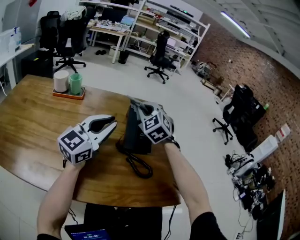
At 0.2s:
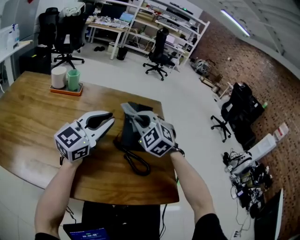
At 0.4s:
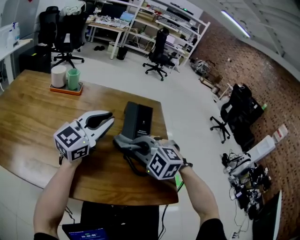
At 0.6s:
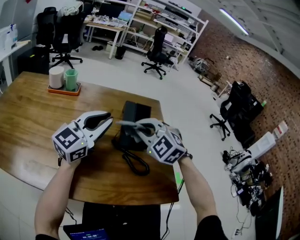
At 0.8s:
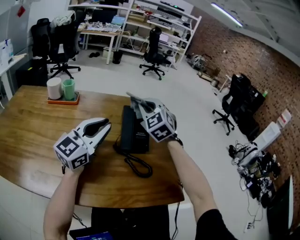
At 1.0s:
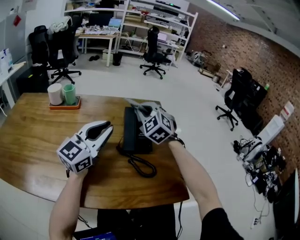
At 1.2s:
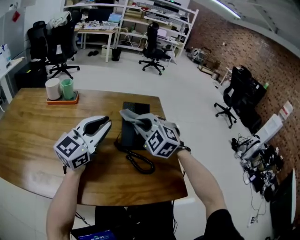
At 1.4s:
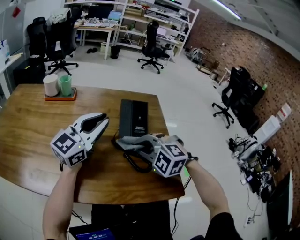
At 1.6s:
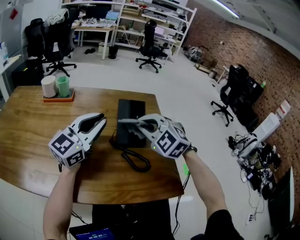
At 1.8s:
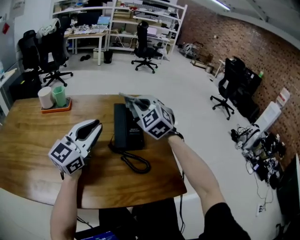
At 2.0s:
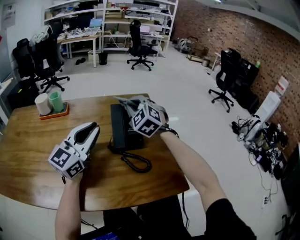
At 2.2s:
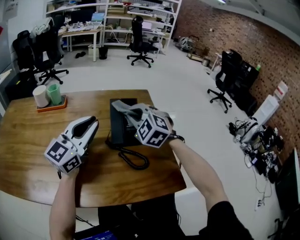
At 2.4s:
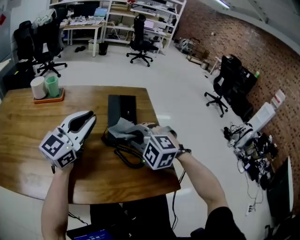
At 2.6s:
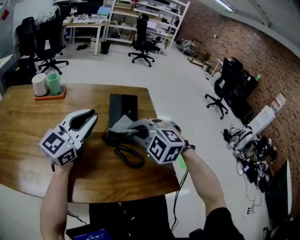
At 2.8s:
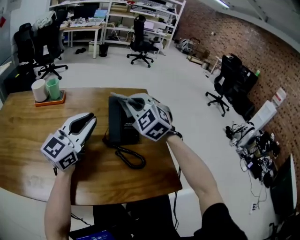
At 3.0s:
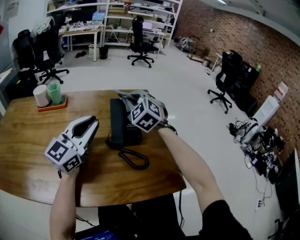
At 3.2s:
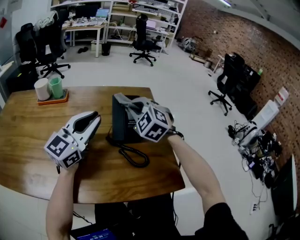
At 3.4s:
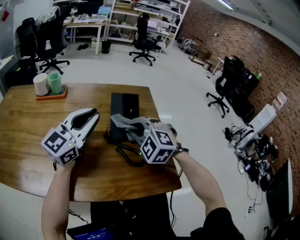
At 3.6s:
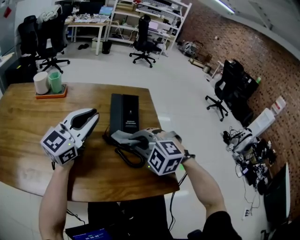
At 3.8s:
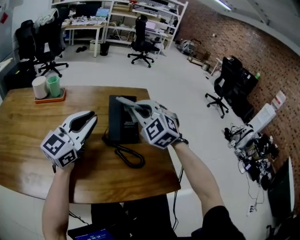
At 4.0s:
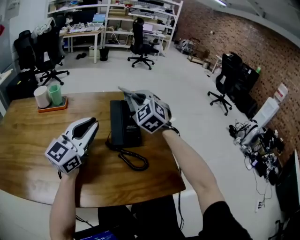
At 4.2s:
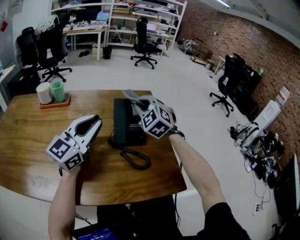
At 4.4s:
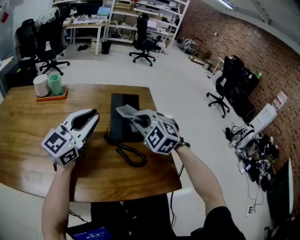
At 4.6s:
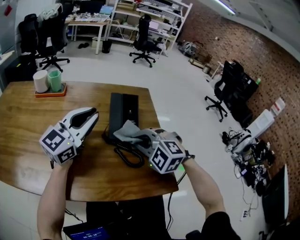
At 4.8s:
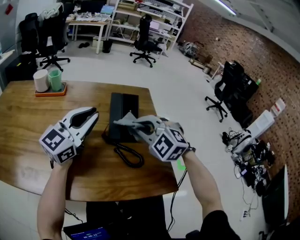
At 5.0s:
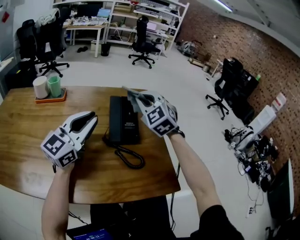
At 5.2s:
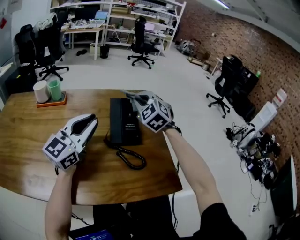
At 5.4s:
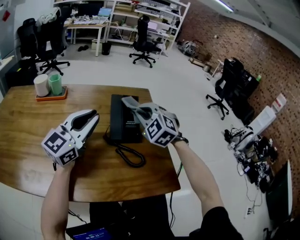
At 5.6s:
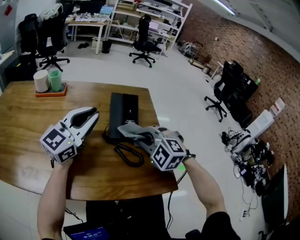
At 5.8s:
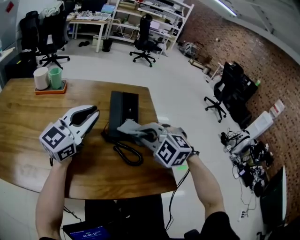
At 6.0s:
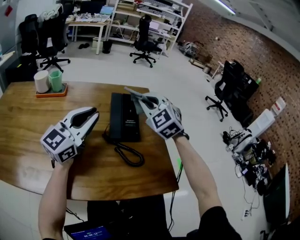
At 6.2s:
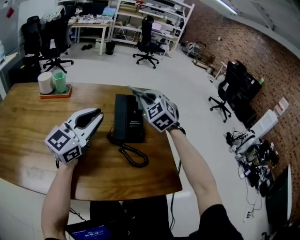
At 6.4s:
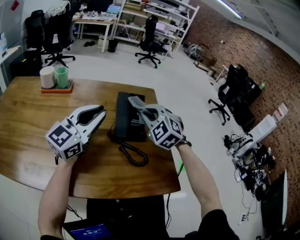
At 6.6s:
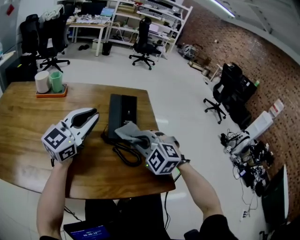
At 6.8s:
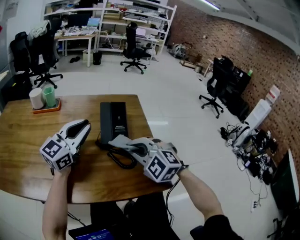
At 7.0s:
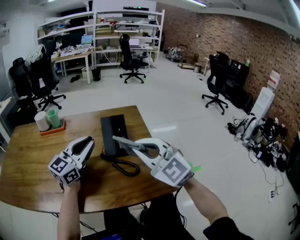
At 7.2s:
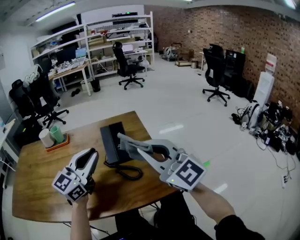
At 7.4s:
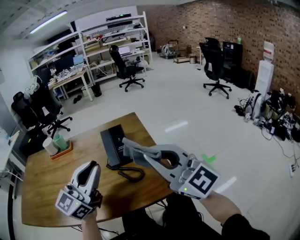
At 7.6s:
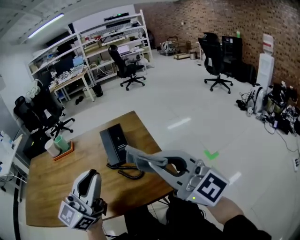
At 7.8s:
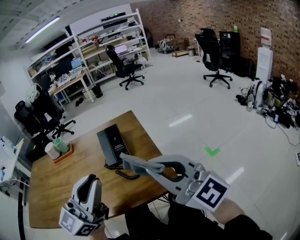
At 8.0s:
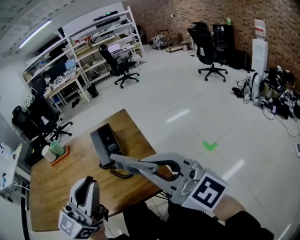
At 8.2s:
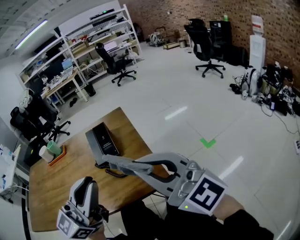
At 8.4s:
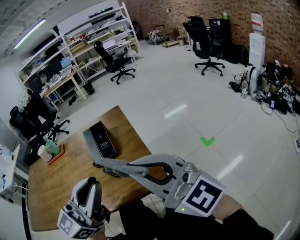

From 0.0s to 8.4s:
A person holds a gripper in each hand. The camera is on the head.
From 0.0s to 1.4s: The right gripper swings forward and backward, approximately 20 cm each way, with 2 reversals, and turns by approximately 40 degrees.
From 1.4s to 2.8s: The right gripper goes forward and backward, some 20 cm each way, reversing 2 times, and swivels about 30 degrees.
From 2.8s to 4.2s: The right gripper swings forward and backward, roughly 20 cm each way, with 2 reversals.
From 4.2s to 5.6s: The right gripper swings forward and backward, about 20 cm each way, with 2 reversals, and turns by roughly 30 degrees.
From 5.6s to 7.0s: The right gripper travels upward by approximately 10 cm, goes forward and returns, roughly 15 cm each way, and tips its fingers upward by roughly 30 degrees.
From 7.0s to 8.4s: The grippers both shift backward, to the right and upward by approximately 25 cm. The right gripper changes its angle by roughly 30 degrees.

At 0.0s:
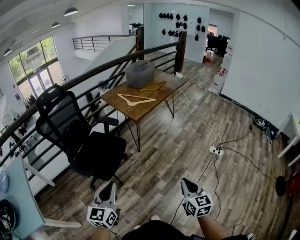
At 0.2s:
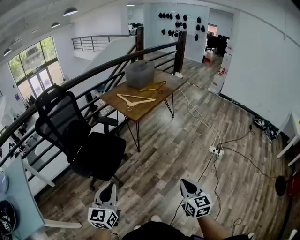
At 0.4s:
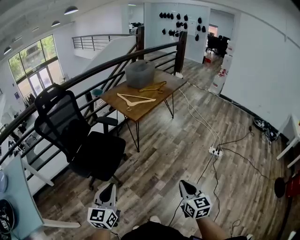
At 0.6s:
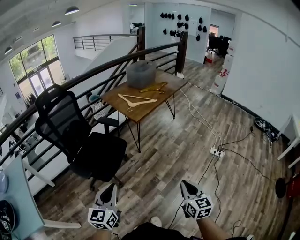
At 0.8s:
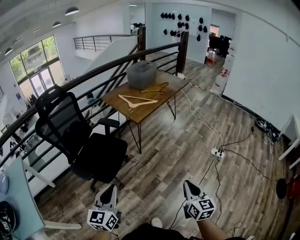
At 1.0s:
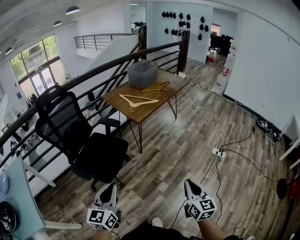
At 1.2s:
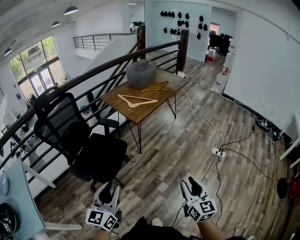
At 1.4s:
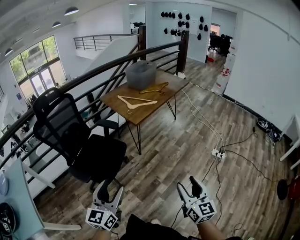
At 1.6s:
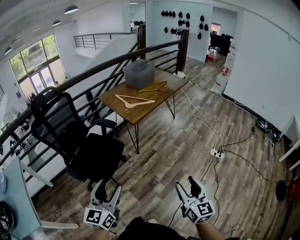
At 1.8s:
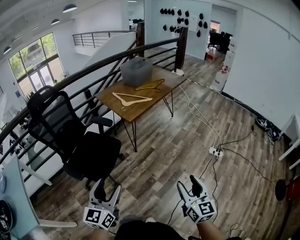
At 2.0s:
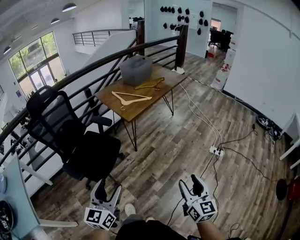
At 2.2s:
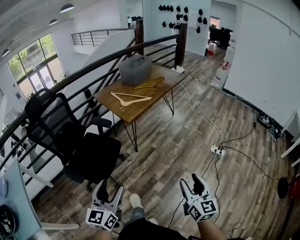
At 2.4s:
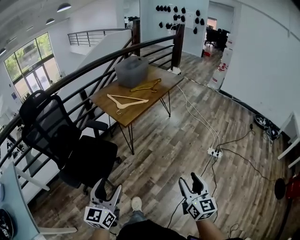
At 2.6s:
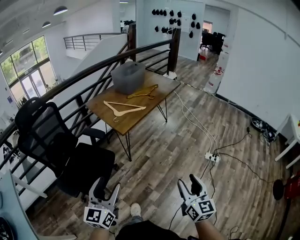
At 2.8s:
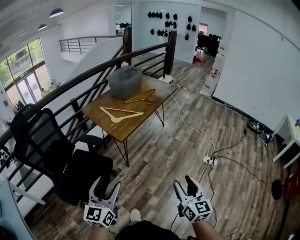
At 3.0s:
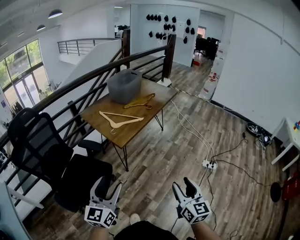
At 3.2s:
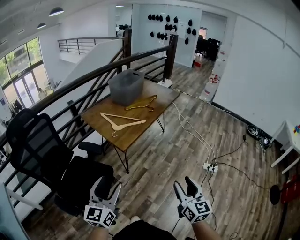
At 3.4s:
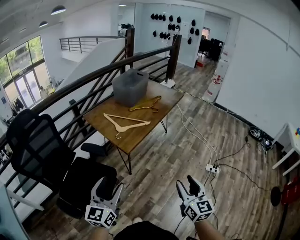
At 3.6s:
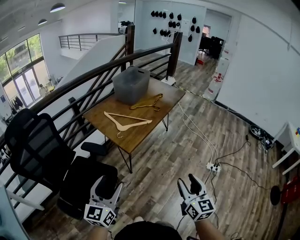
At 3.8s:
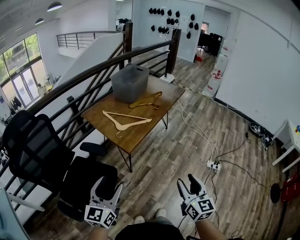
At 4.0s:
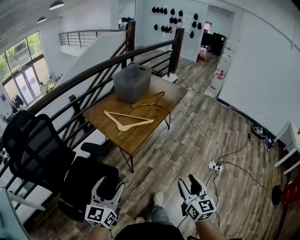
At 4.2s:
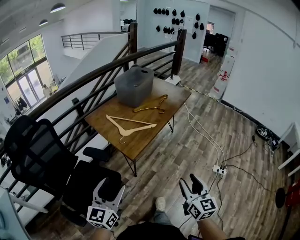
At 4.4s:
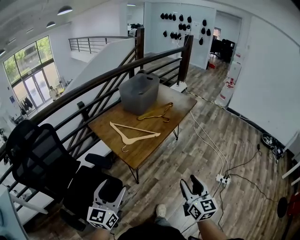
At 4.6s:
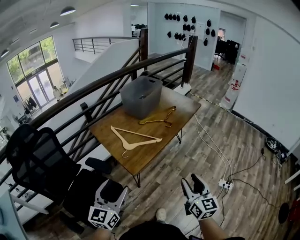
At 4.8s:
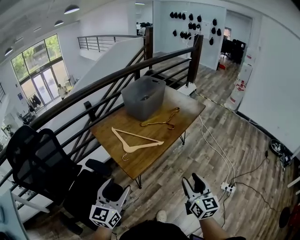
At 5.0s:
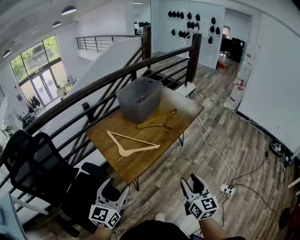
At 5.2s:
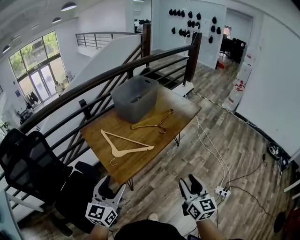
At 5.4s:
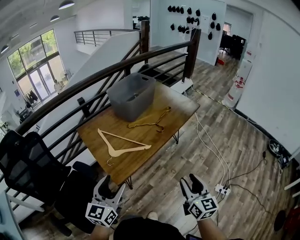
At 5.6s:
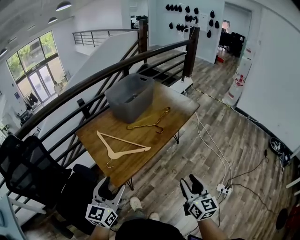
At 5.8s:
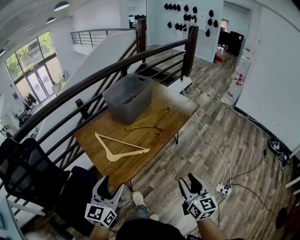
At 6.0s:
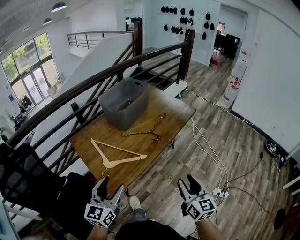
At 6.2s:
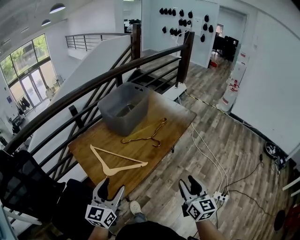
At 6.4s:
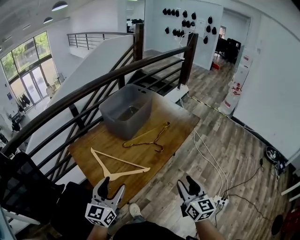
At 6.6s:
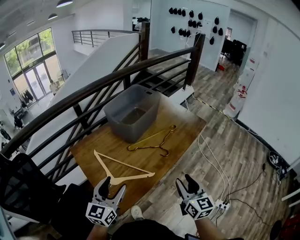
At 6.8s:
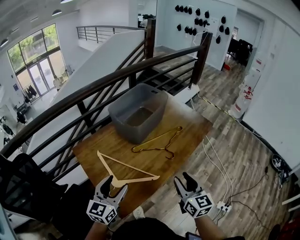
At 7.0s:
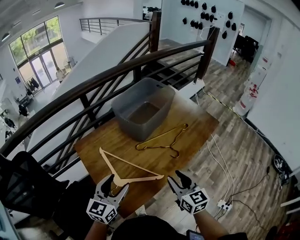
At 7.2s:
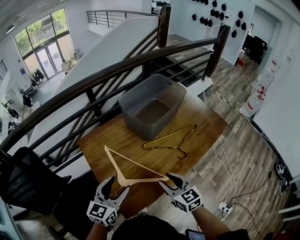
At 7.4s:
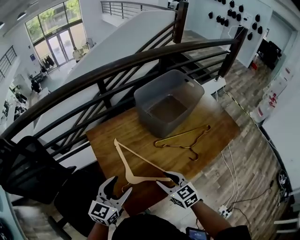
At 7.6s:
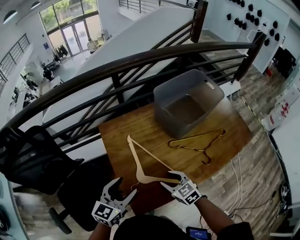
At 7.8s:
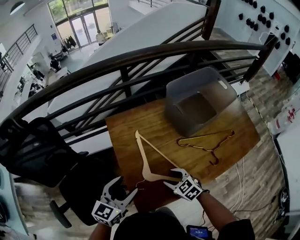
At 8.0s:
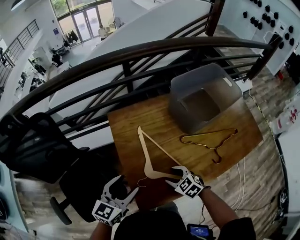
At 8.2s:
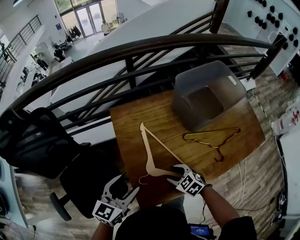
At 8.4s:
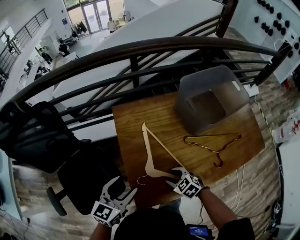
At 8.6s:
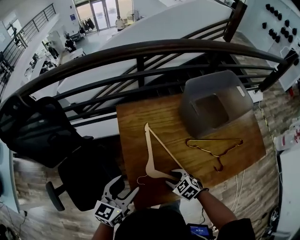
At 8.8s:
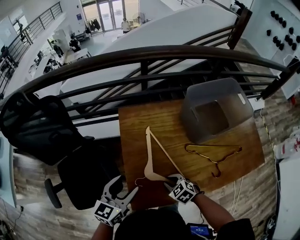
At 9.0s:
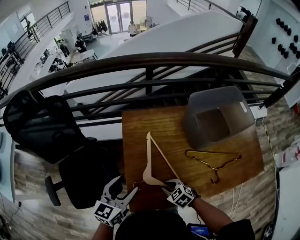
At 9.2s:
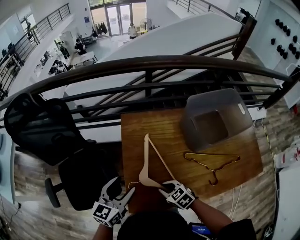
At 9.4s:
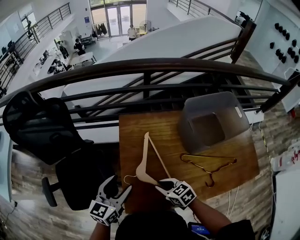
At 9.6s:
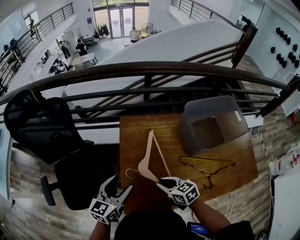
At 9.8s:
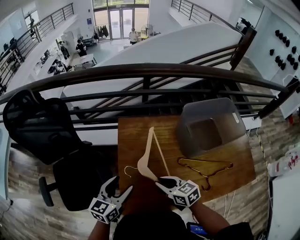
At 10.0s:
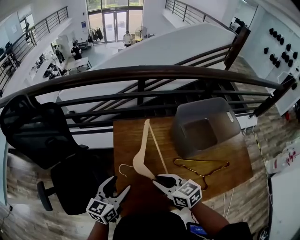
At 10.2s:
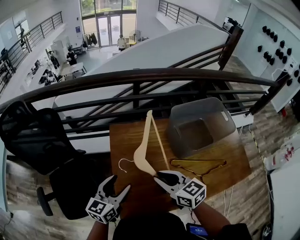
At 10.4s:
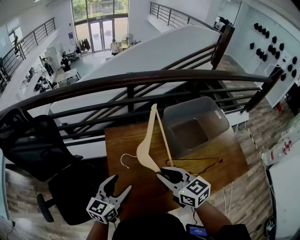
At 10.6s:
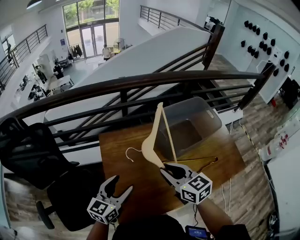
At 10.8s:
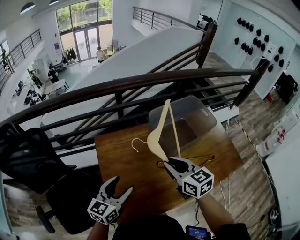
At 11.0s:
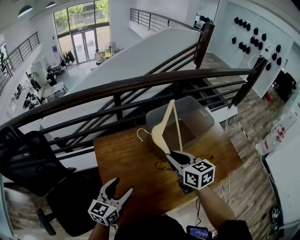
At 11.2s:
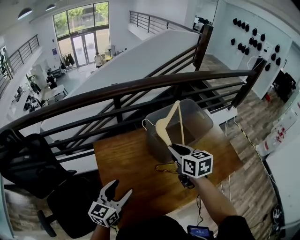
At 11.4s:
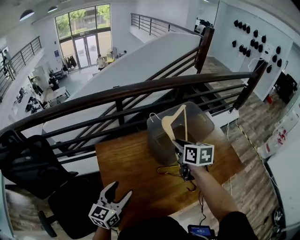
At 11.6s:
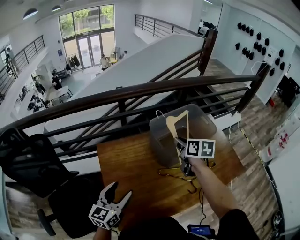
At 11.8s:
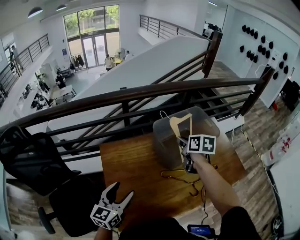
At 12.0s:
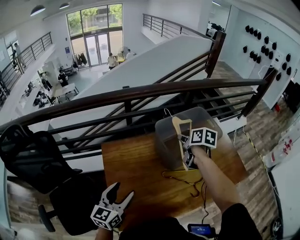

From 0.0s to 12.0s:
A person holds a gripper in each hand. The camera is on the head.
From 0.0s to 1.6s: The right gripper ends up approximately 5 cm from where it was, and opens up; the left gripper moves about 5 cm, and opens its fingers.
From 1.6s to 3.0s: The two grippers go about 20 cm forward.
From 3.0s to 4.4s: The grippers both shift forward by about 20 cm.
From 4.4s to 6.0s: The grippers both shift forward and to the right by approximately 25 cm.
From 6.0s to 7.6s: The left gripper changes place by roughly 20 cm. The right gripper ends up approximately 40 cm from where it was, and tilts its fingers roughly 30 degrees downward.
From 7.6s to 9.0s: The left gripper turns by approximately 20 degrees, while the right gripper is displaced downward by some 5 cm, changes its angle by about 30 degrees, and closes.
From 9.0s to 10.4s: The right gripper goes roughly 25 cm upward, and points its fingers roughly 40 degrees further upward. Meanwhile the left gripper goes roughly 5 cm to the right.
From 10.4s to 12.0s: The right gripper is displaced forward and to the right by approximately 25 cm, and turns by approximately 50 degrees.

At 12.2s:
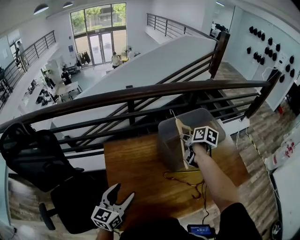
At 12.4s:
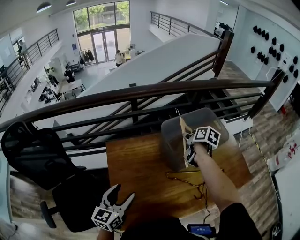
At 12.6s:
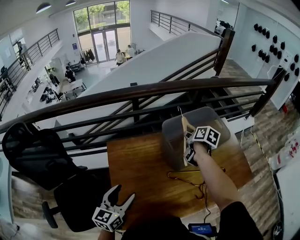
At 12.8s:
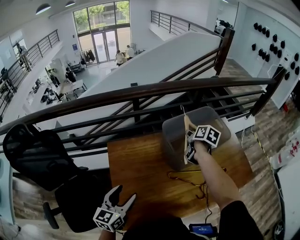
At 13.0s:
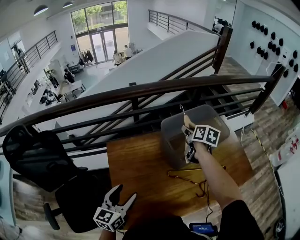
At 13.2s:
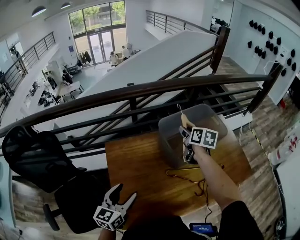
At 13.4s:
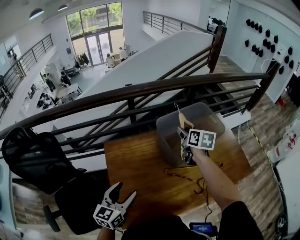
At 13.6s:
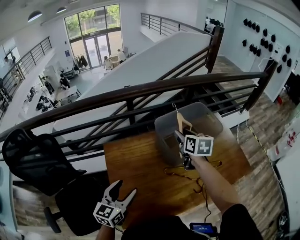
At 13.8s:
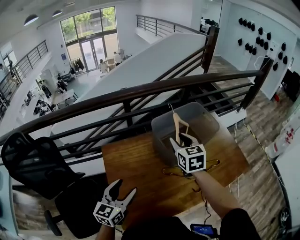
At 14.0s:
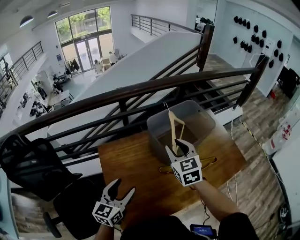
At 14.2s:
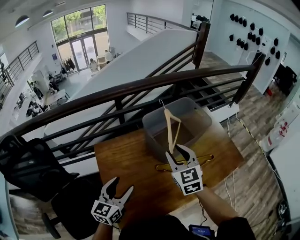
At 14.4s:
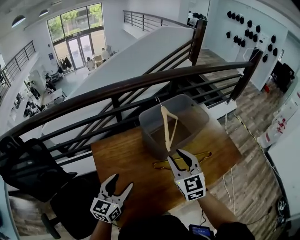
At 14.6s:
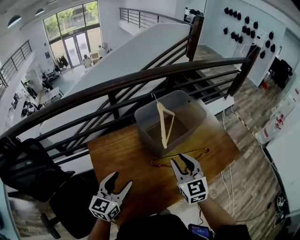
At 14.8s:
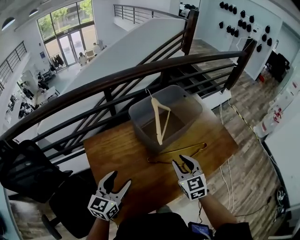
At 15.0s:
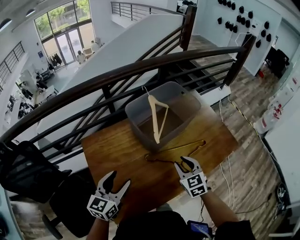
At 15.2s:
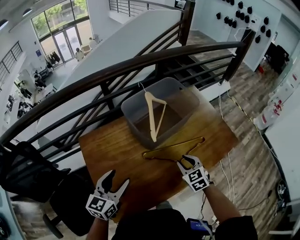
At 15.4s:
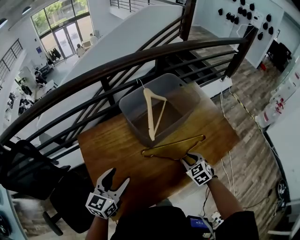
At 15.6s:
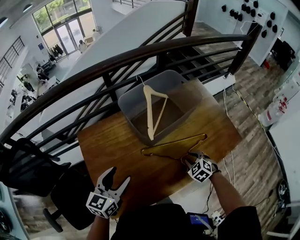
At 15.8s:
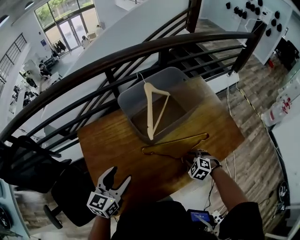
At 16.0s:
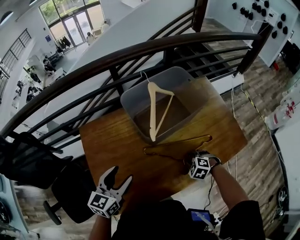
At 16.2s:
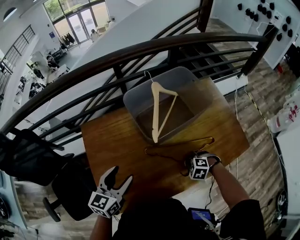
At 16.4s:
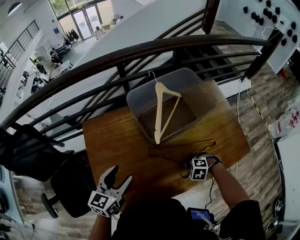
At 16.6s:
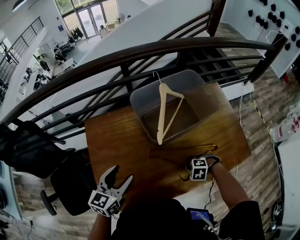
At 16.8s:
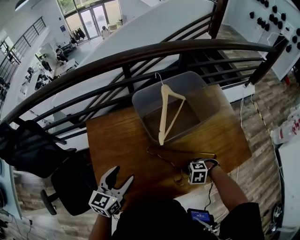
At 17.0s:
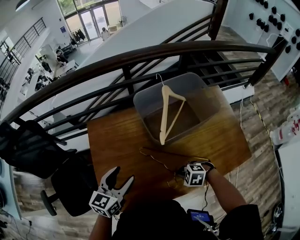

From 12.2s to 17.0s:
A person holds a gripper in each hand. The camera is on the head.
From 12.2s to 13.8s: The right gripper travels backward and upward by approximately 10 cm, and twists roughly 40 degrees counterclockwise, seen from behind.
From 13.8s to 15.4s: The right gripper is displaced downward, to the right and backward by about 35 cm, and swivels about 30 degrees. Meanwhile the left gripper heads to the right, covering about 5 cm.
From 15.4s to 17.0s: The right gripper changes place by some 10 cm, turns by approximately 60 degrees, and closes its fingers.
